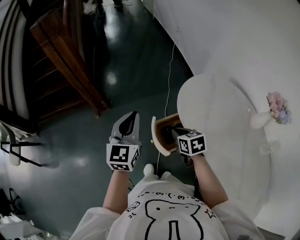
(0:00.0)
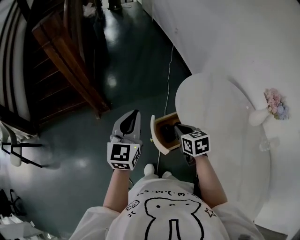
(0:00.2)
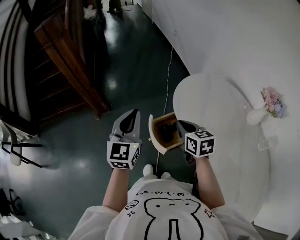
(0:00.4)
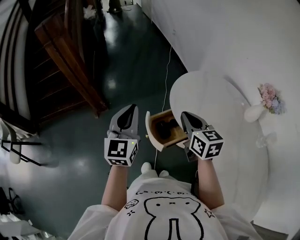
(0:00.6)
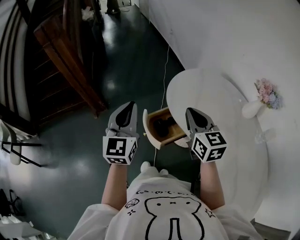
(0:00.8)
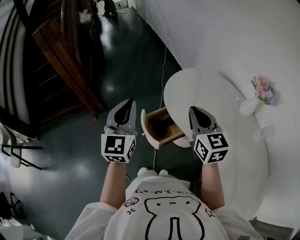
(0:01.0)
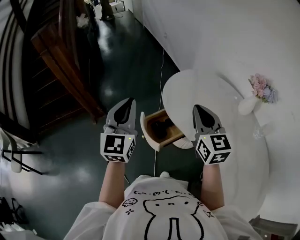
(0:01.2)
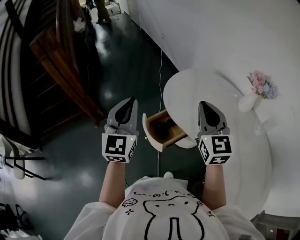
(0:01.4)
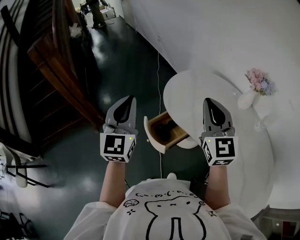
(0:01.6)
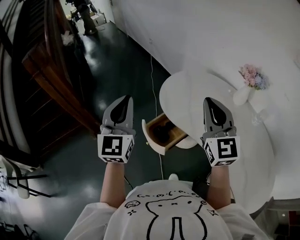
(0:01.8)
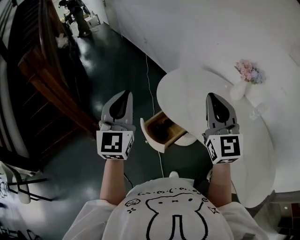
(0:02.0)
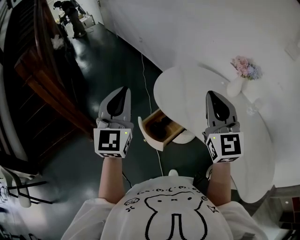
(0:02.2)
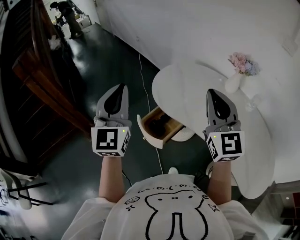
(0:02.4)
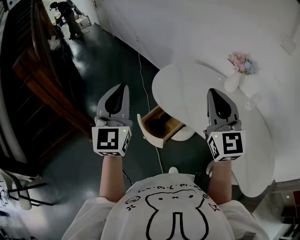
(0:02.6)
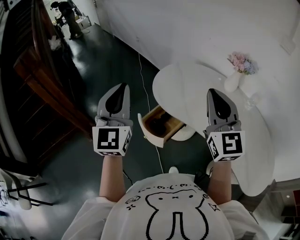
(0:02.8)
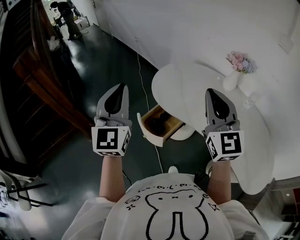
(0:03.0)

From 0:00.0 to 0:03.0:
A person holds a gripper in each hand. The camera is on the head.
From 0:00.0 to 0:01.6: The left gripper moves upward, to the right and backward, roughly 15 cm. Meanwhile the right gripper goes approximately 30 cm upward and to the right, and tilts its fingers about 50 degrees upward.
From 0:01.6 to 0:03.0: The left gripper changes place by about 5 cm, while the right gripper is displaced backward by roughly 10 cm.

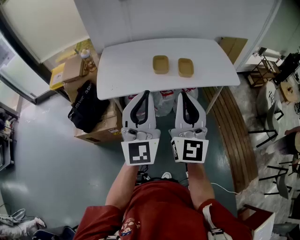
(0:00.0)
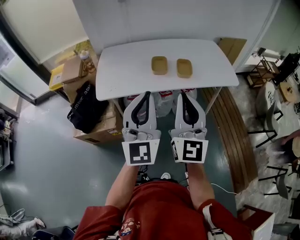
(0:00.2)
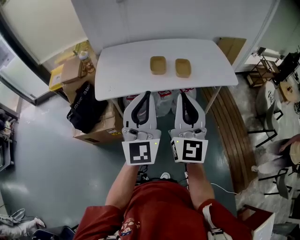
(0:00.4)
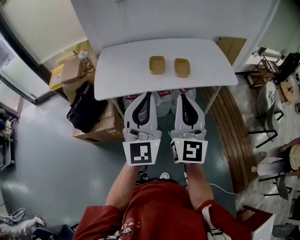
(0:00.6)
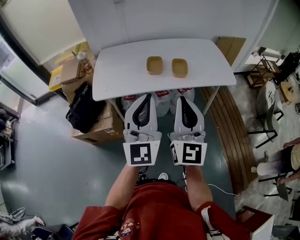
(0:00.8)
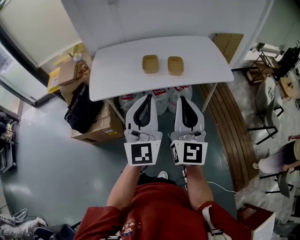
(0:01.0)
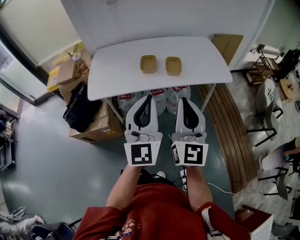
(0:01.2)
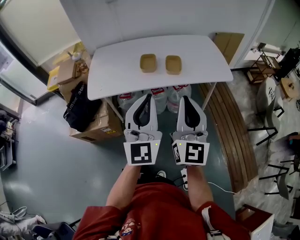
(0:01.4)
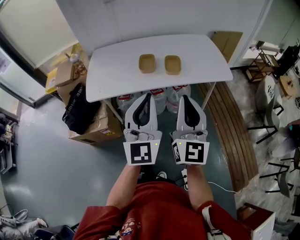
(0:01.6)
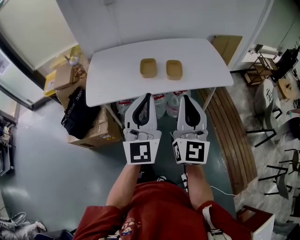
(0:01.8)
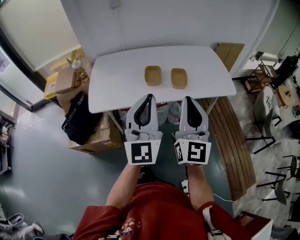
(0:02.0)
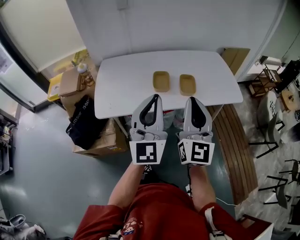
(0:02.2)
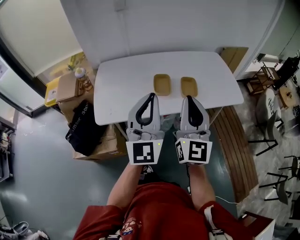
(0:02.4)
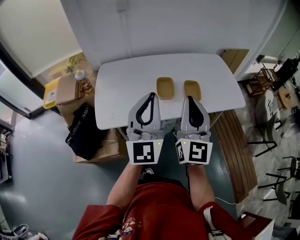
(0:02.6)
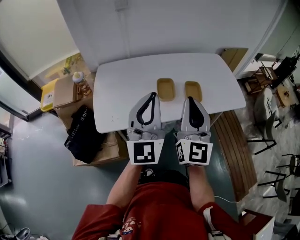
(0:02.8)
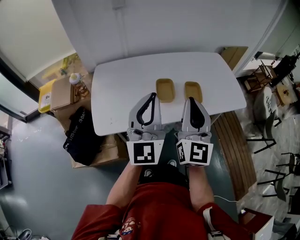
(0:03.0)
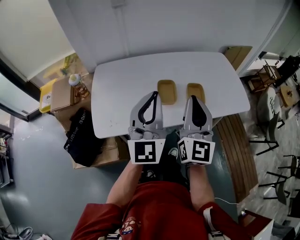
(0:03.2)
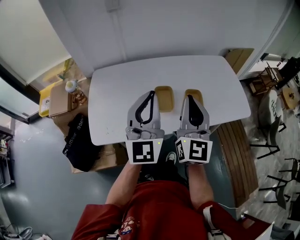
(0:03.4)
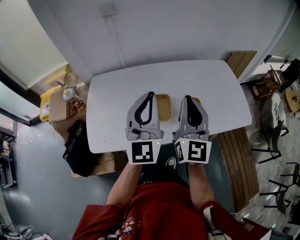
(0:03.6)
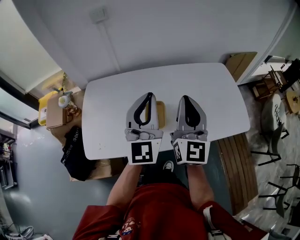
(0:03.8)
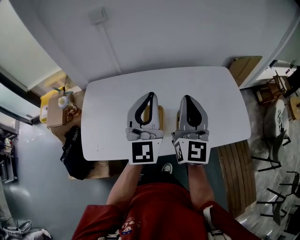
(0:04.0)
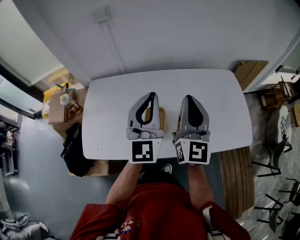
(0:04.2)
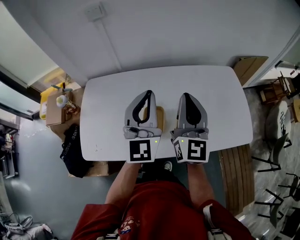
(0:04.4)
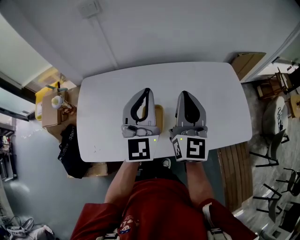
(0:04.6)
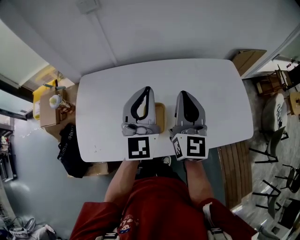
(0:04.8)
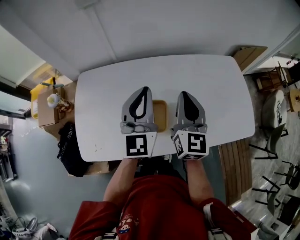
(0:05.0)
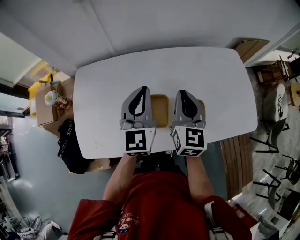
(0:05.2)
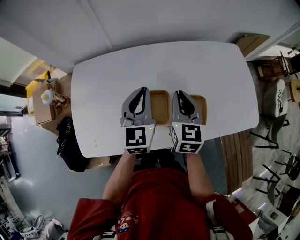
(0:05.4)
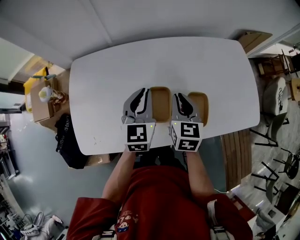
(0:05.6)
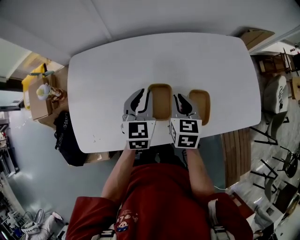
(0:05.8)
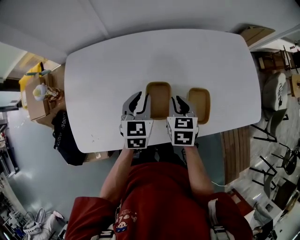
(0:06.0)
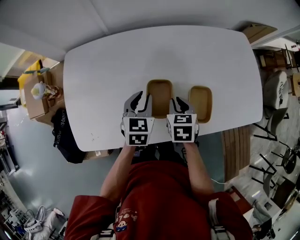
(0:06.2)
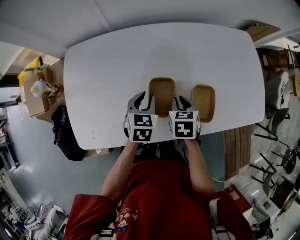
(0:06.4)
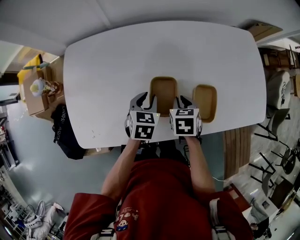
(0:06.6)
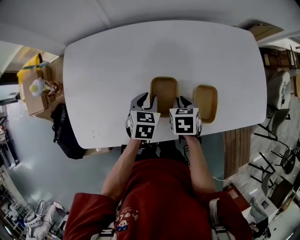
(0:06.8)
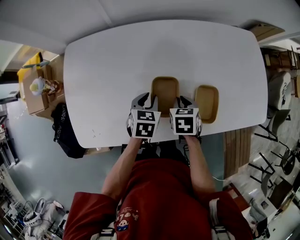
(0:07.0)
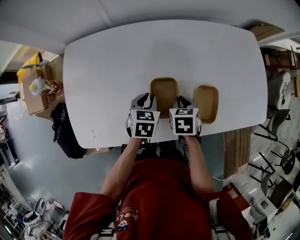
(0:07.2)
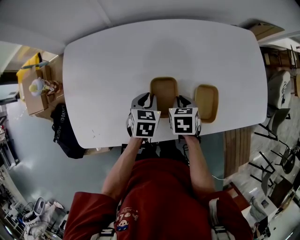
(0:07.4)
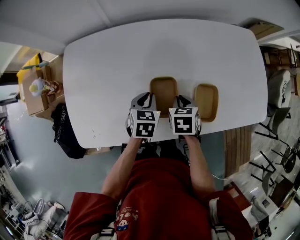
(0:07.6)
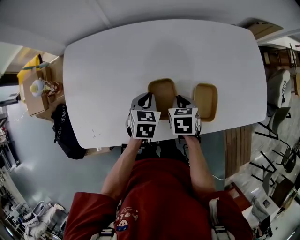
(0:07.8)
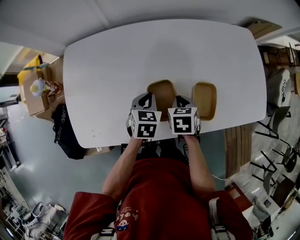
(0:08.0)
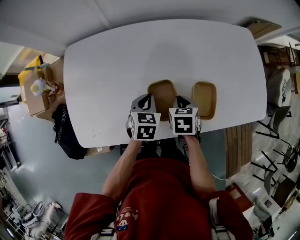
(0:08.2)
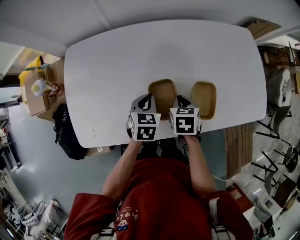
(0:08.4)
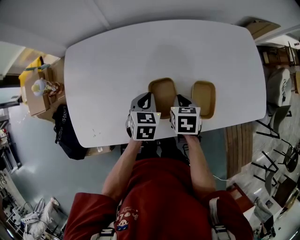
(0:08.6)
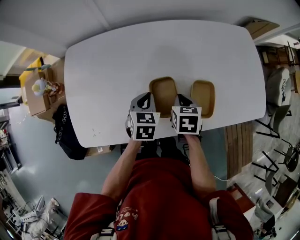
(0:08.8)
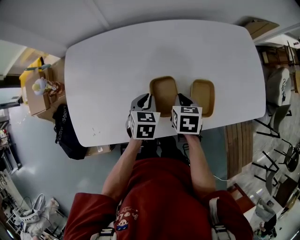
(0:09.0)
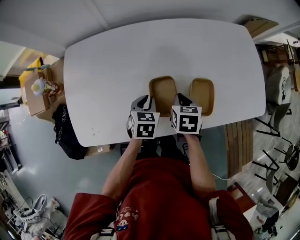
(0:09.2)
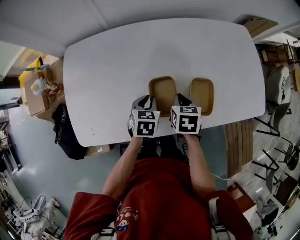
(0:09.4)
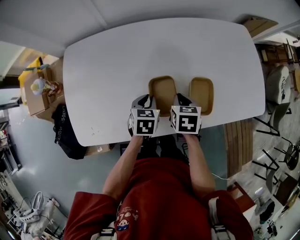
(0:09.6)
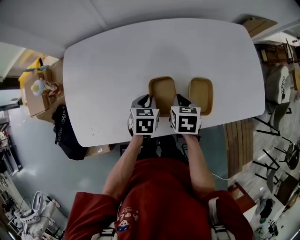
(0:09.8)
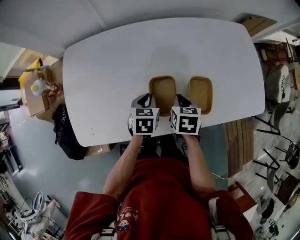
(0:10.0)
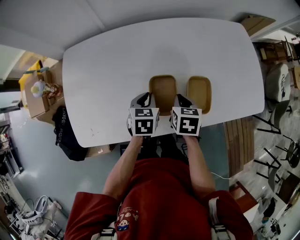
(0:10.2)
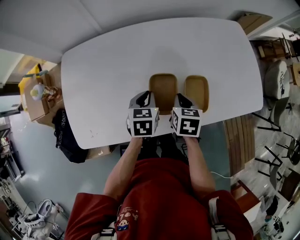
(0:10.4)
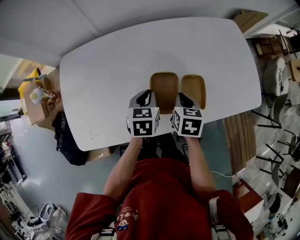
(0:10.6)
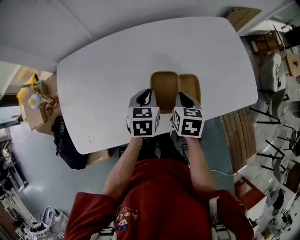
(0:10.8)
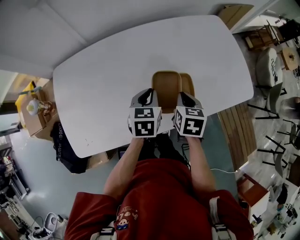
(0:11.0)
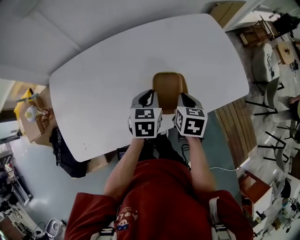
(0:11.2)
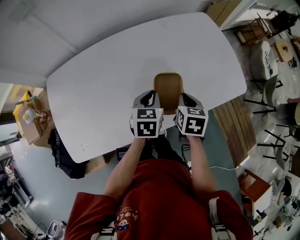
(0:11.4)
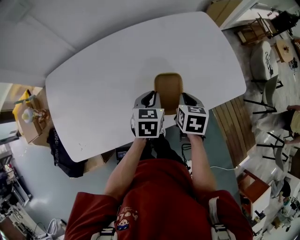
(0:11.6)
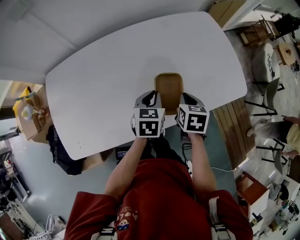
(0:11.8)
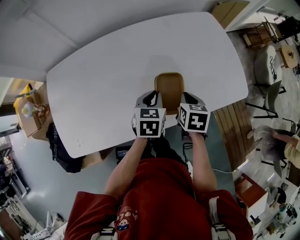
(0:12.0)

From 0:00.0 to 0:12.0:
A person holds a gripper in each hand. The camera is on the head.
From 0:00.0 to 0:01.6: Both grippers travel together to the right, some 10 cm.
From 0:01.6 to 0:03.0: The grippers both shift forward and to the left by about 25 cm.
From 0:03.0 to 0:04.4: The right gripper is displaced forward by about 25 cm, while the left gripper is displaced forward and to the right by approximately 30 cm.
From 0:04.4 to 0:06.0: Both grippers travel together downward, about 30 cm. The left gripper points its fingers some 40 degrees further downward, and opens up. The right gripper points its fingers approximately 50 degrees further downward.
From 0:06.0 to 0:07.6: Both grippers travel together downward, roughly 10 cm.
From 0:07.6 to 0:10.4: The grippers make only small movements.
From 0:10.4 to 0:12.0: Both grippers travel together to the right, about 15 cm.

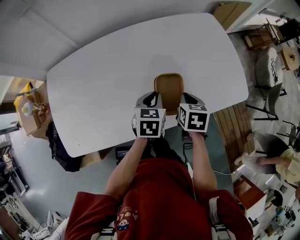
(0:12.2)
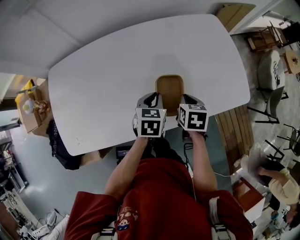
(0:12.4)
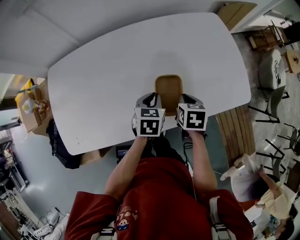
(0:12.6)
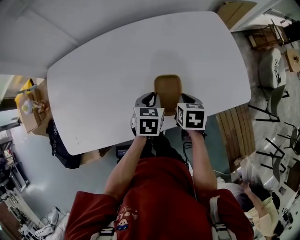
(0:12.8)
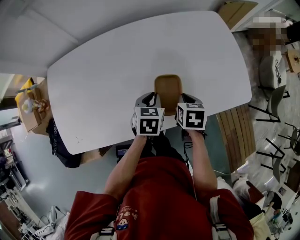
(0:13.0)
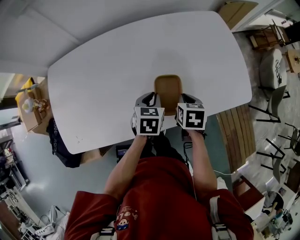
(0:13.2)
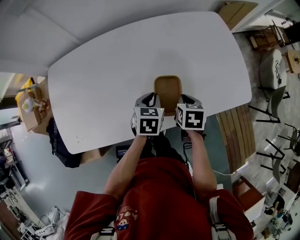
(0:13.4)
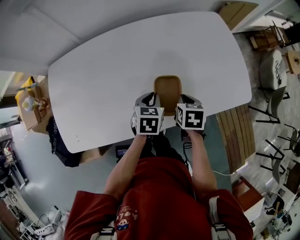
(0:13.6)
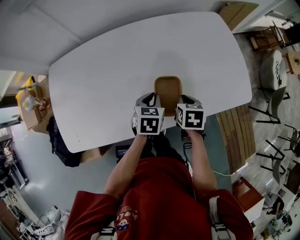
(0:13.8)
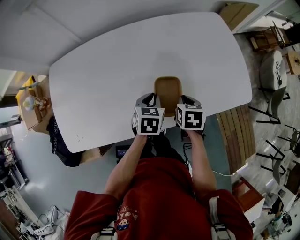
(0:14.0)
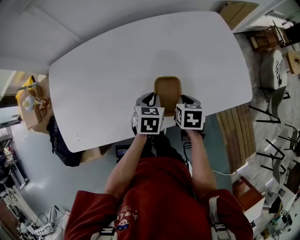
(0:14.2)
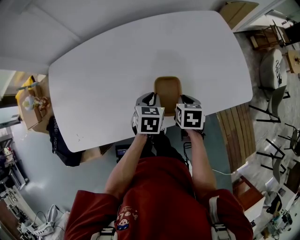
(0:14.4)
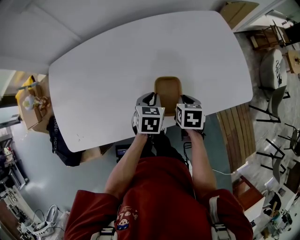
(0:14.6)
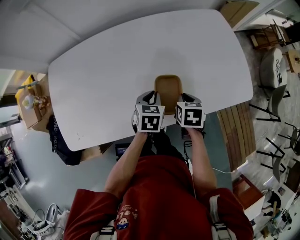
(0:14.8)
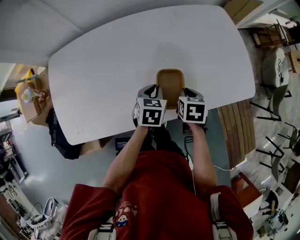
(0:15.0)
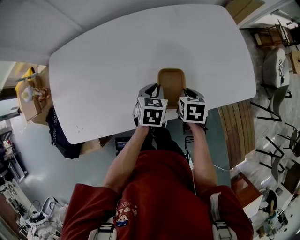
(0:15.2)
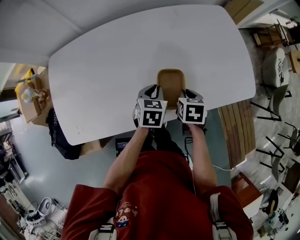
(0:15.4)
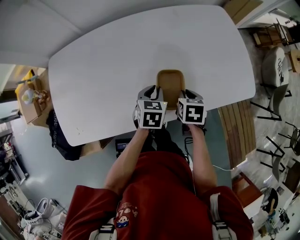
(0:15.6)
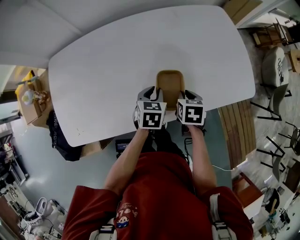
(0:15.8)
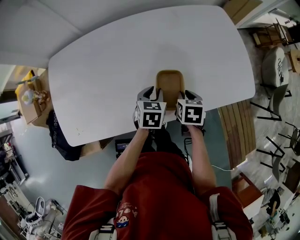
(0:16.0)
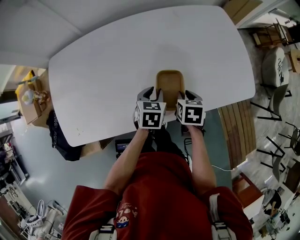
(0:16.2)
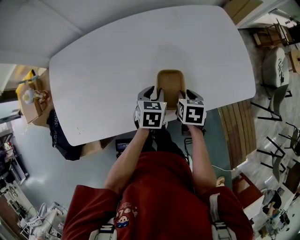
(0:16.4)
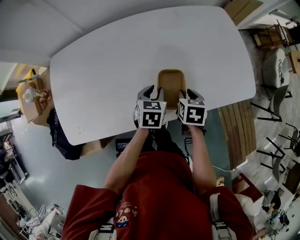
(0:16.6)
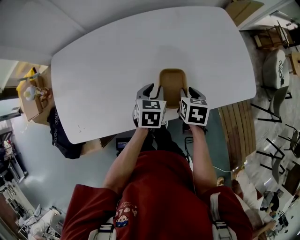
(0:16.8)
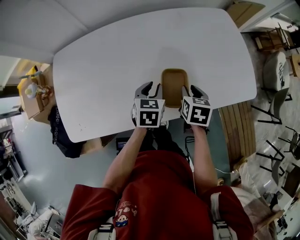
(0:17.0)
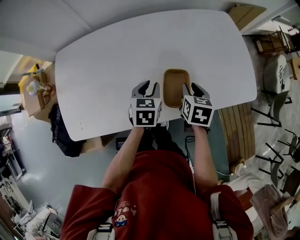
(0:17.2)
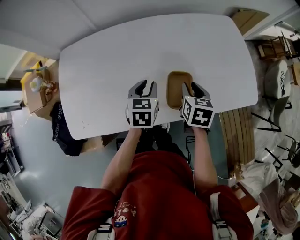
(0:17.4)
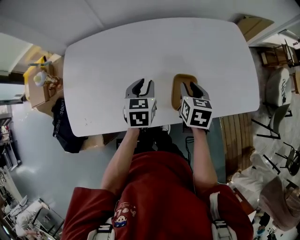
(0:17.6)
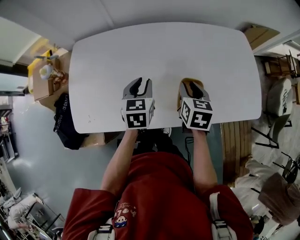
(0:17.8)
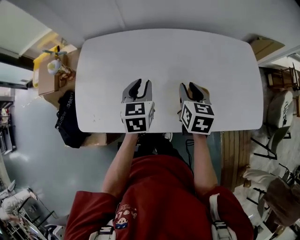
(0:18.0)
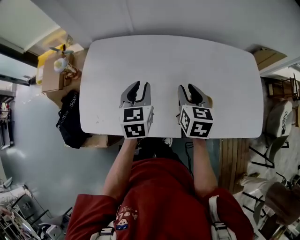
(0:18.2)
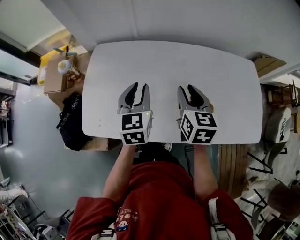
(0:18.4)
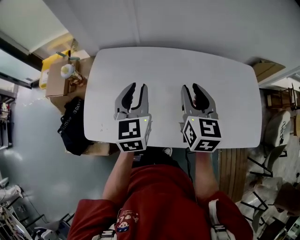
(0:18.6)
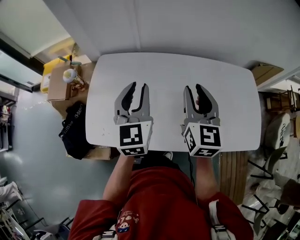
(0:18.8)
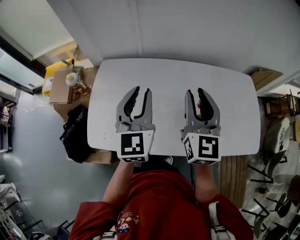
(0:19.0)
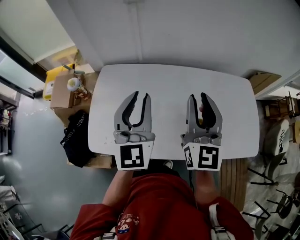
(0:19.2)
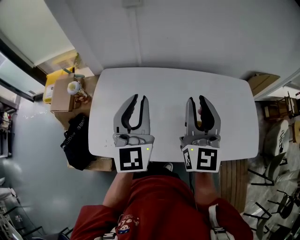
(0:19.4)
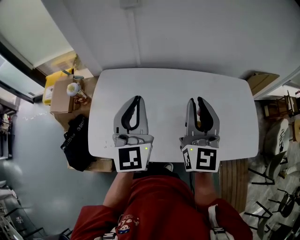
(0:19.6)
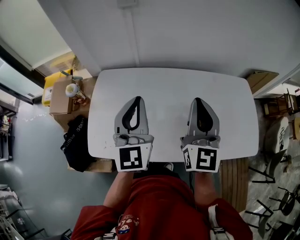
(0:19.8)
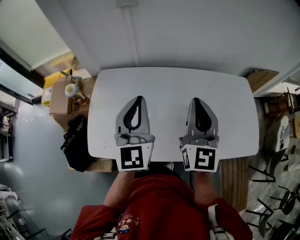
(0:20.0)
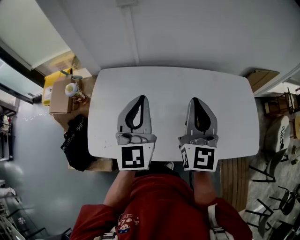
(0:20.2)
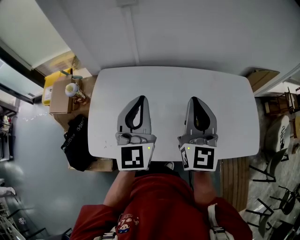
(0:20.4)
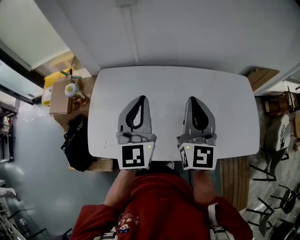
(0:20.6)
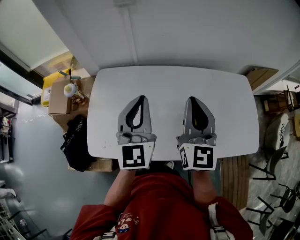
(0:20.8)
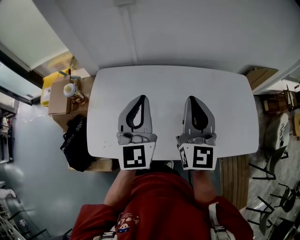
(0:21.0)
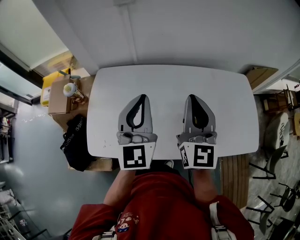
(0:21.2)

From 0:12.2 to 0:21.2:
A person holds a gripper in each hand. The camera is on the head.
From 0:12.2 to 0:15.2: The grippers make only small movements.
From 0:15.2 to 0:16.6: The two grippers keep their place.
From 0:16.6 to 0:18.2: The two grippers go about 25 cm to the left and upward. The right gripper rotates about 30 degrees, while the left gripper swivels roughly 30 degrees.
From 0:18.2 to 0:19.8: The grippers both shift upward by some 20 cm. The right gripper tips its fingers upward by some 40 degrees, and closes its fingers. The left gripper tips its fingers upward by about 30 degrees, and closes.
From 0:19.8 to 0:21.2: The grippers make only small movements.
